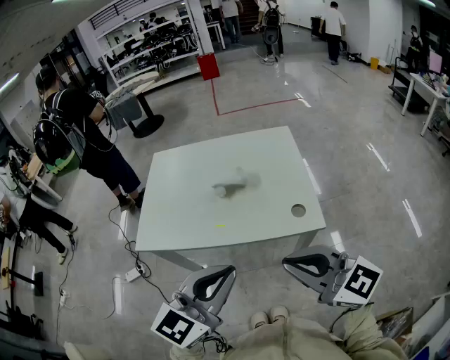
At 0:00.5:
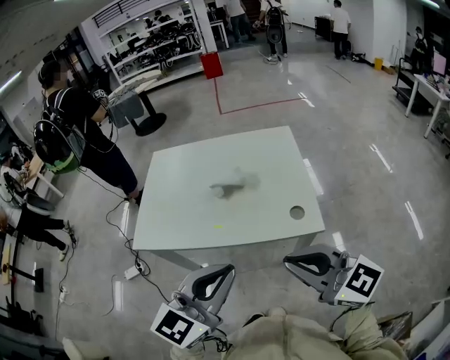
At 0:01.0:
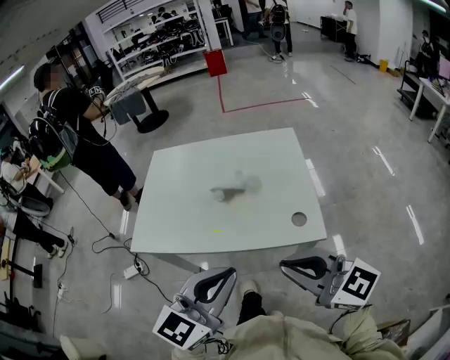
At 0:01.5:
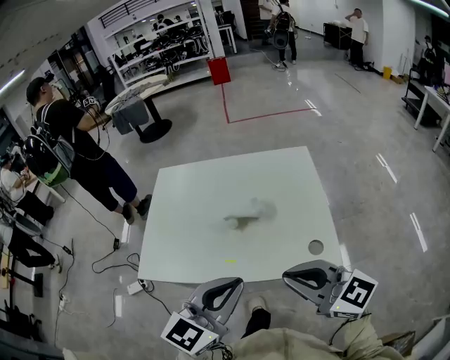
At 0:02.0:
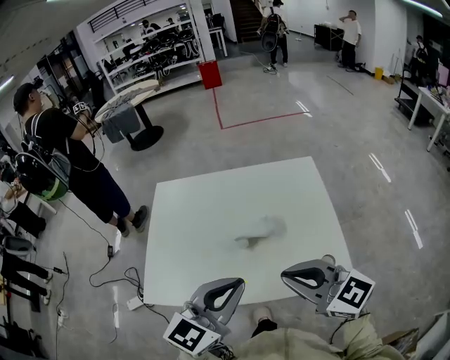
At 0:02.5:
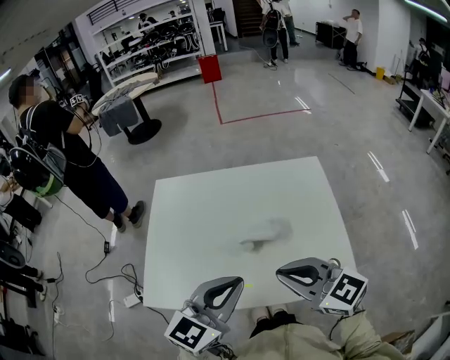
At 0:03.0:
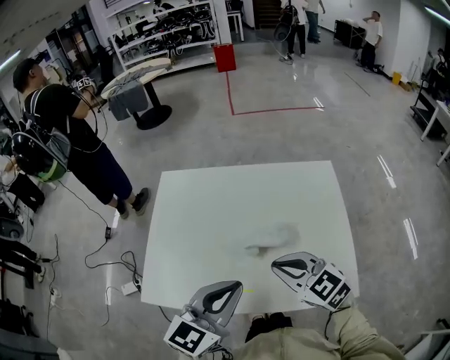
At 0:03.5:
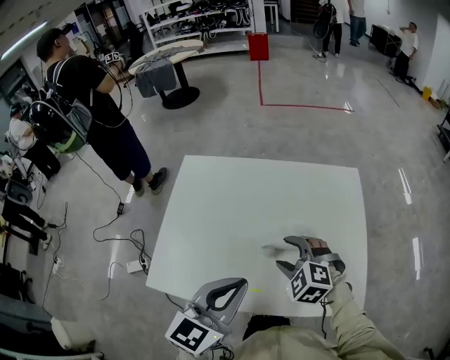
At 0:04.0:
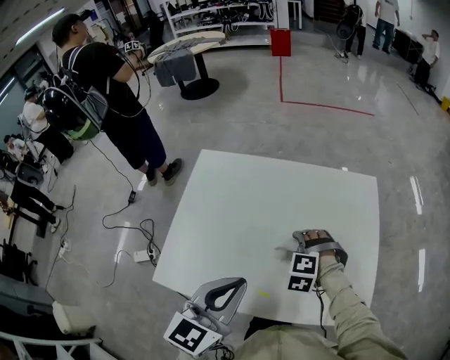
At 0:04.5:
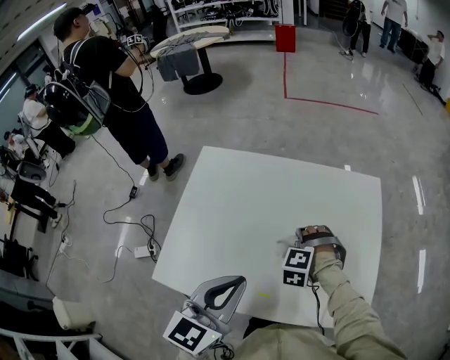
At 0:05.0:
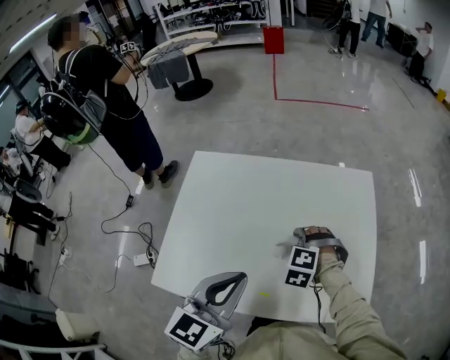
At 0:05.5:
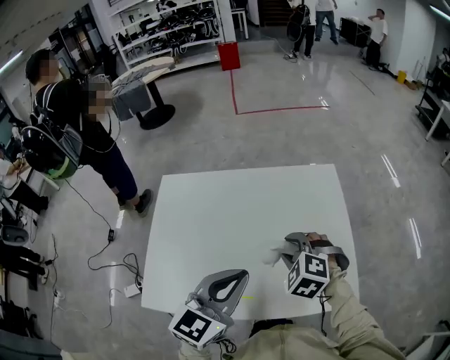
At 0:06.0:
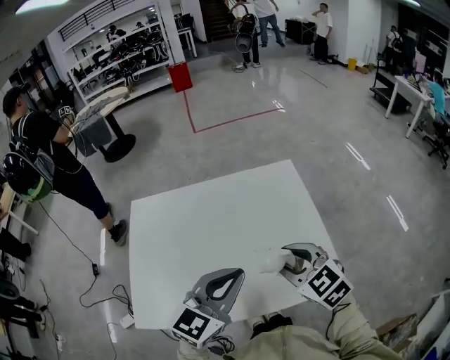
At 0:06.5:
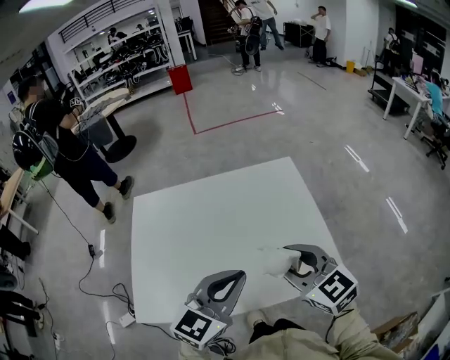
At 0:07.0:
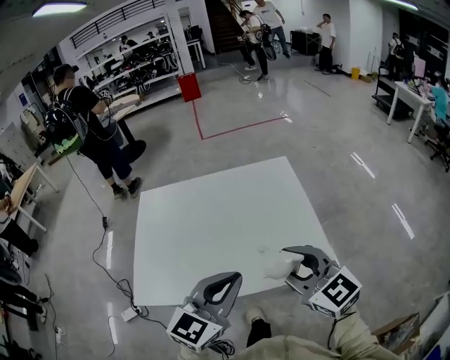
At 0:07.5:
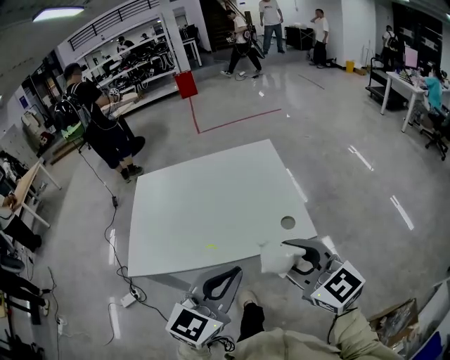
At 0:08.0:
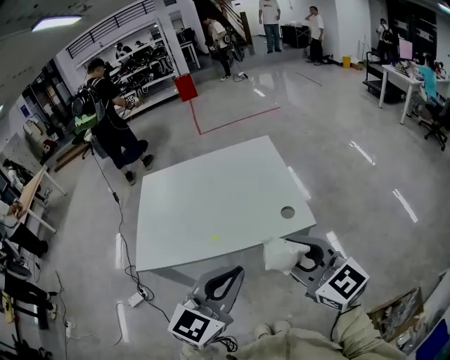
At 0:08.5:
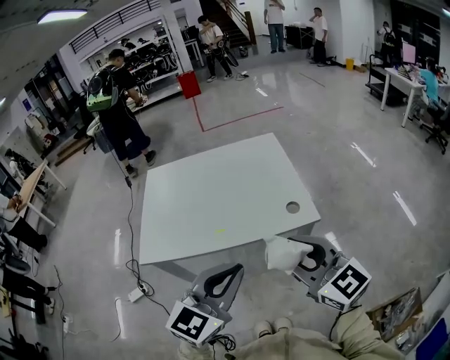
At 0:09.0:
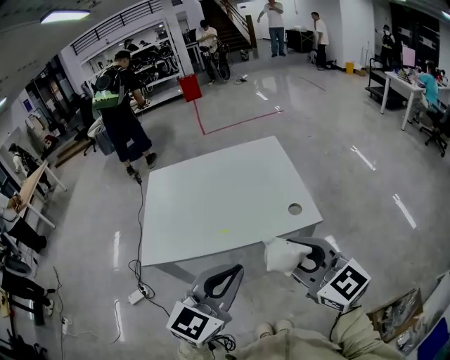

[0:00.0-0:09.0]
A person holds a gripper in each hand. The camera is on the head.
0:00.0 to 0:02.0: Both grippers travel together forward, some 25 cm.
0:02.0 to 0:04.5: The left gripper heads to the left and forward, covering approximately 10 cm, and turns by roughly 20 degrees; the right gripper is displaced downward and forward by roughly 35 cm, points its fingers some 60 degrees further downward, and opens up.
0:04.5 to 0:07.0: The left gripper heads to the right and backward, covering about 15 cm, and turns by about 30 degrees, while the right gripper goes approximately 35 cm upward, backward and to the right, and tips its fingers upward by roughly 60 degrees.
0:07.0 to 0:09.0: Both grippers move backward, roughly 20 cm.

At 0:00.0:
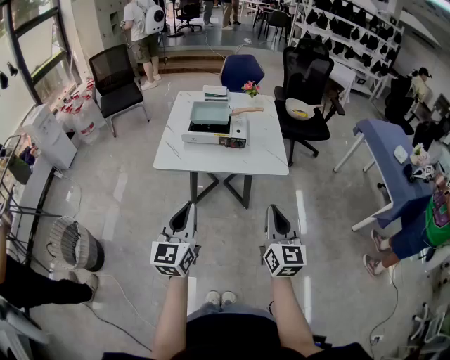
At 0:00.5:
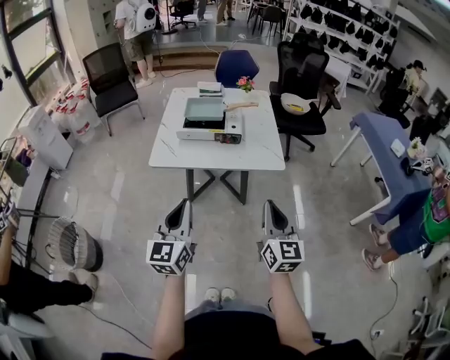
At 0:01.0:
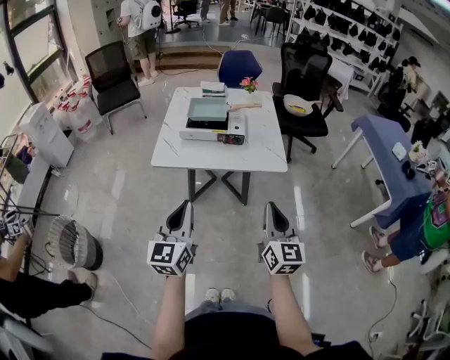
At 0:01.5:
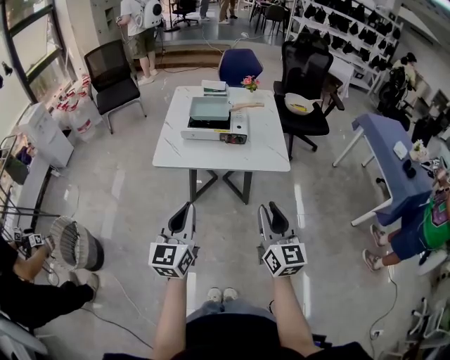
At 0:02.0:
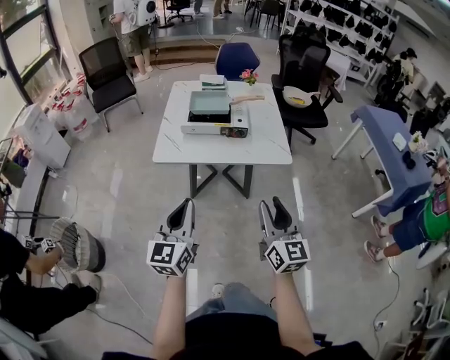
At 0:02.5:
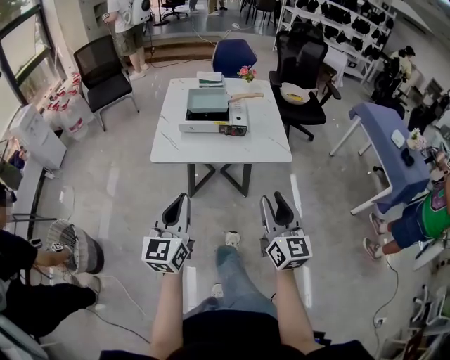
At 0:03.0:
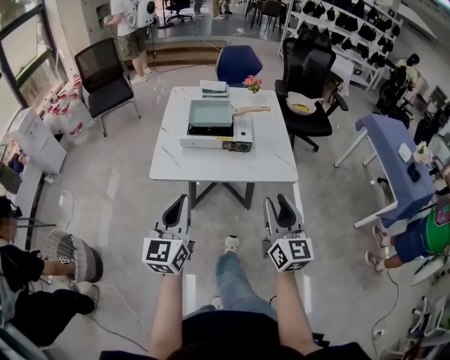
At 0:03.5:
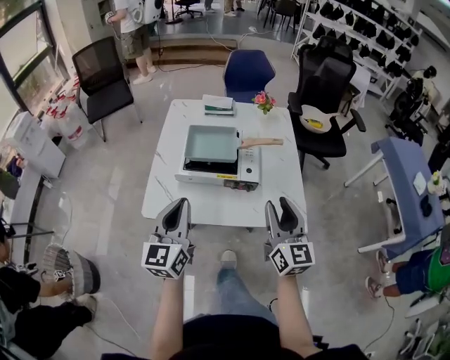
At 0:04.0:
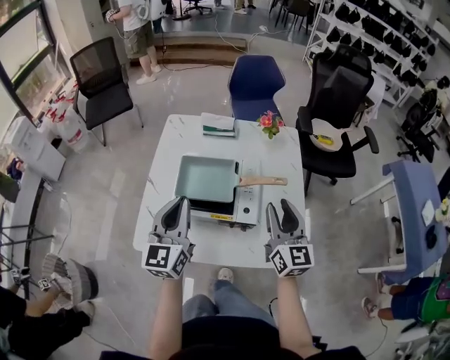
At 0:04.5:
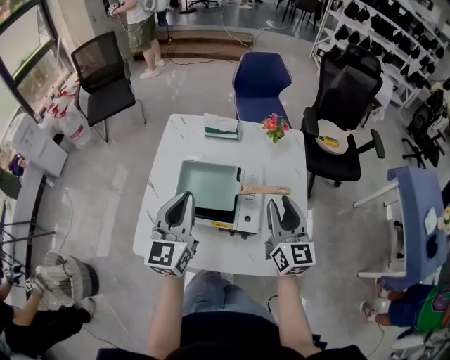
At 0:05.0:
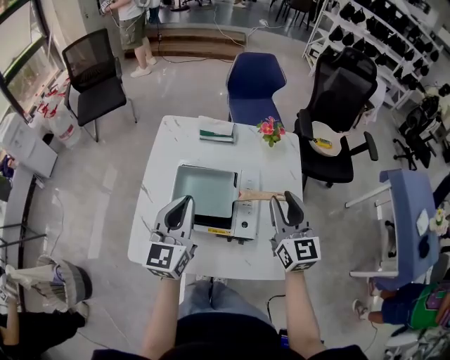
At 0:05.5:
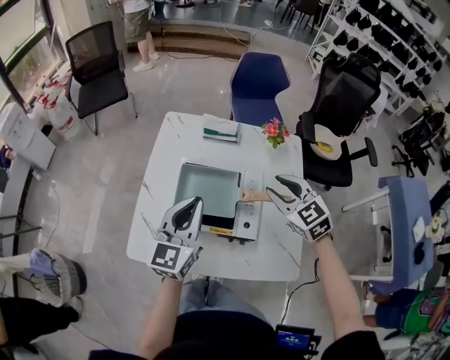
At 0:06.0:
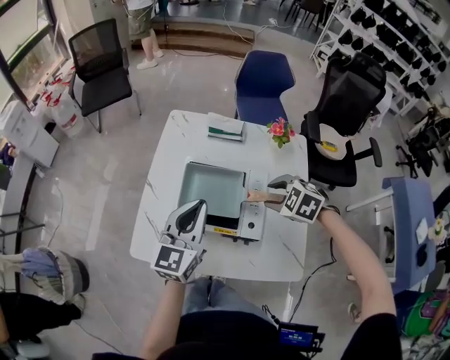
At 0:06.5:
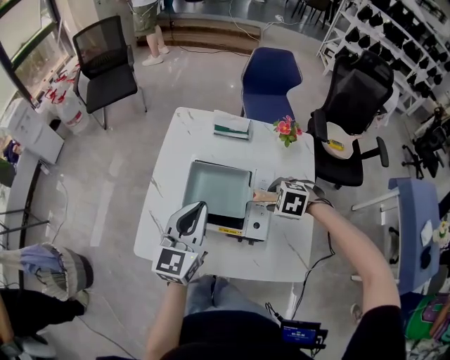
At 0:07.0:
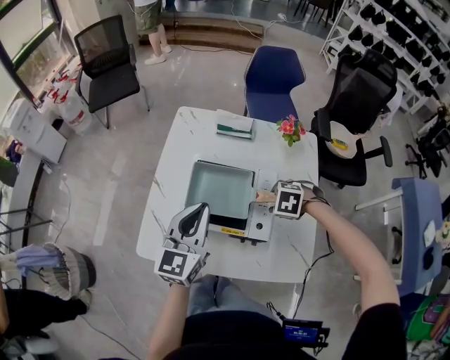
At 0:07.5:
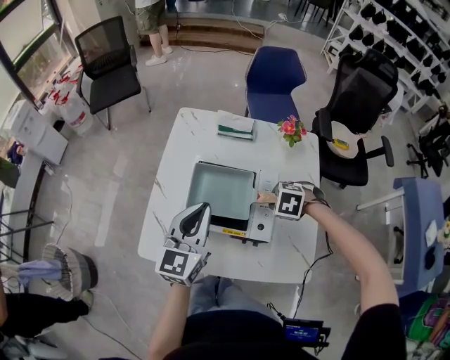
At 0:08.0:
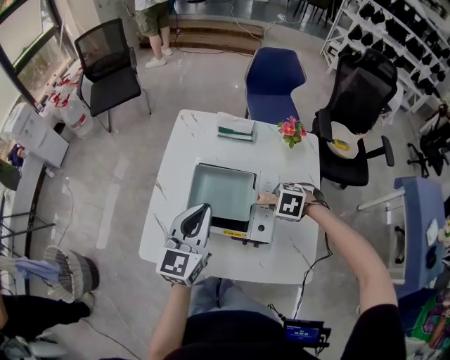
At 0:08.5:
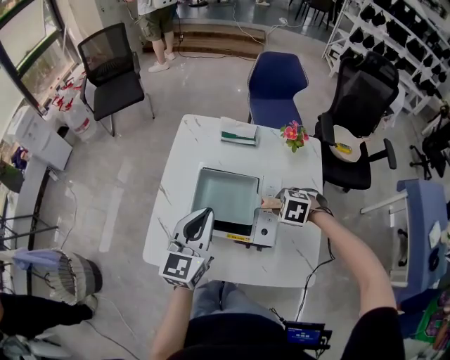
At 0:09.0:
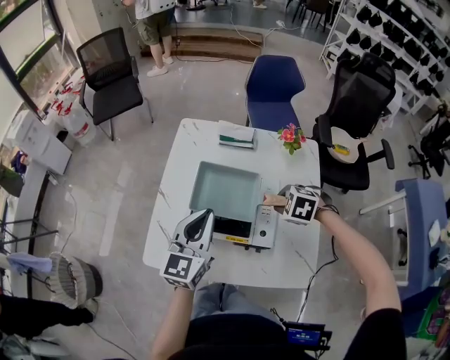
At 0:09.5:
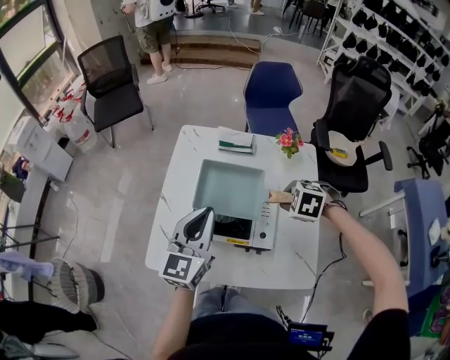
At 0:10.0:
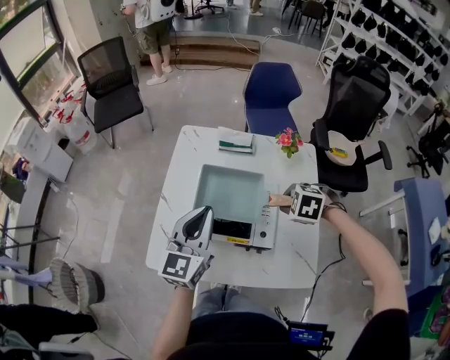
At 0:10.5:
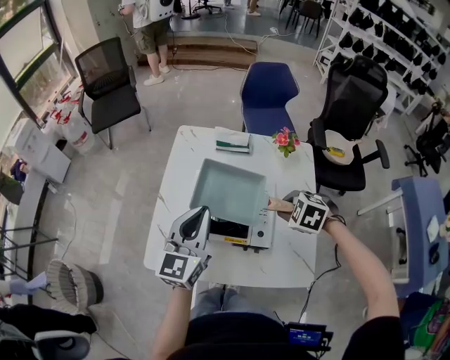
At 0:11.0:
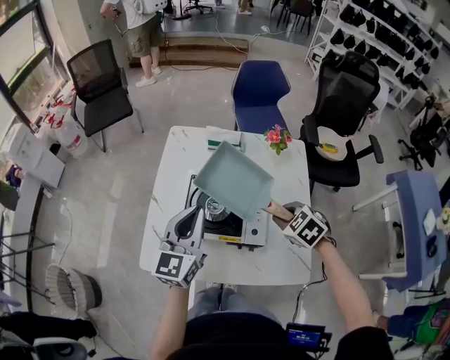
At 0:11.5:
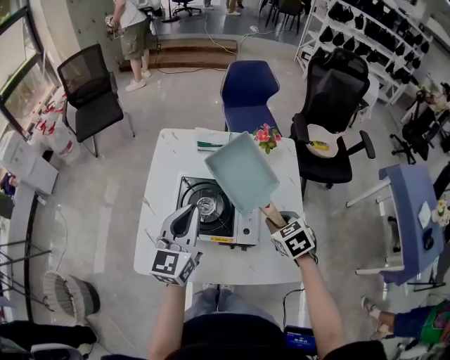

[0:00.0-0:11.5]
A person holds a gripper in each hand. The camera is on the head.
0:00.0 to 0:02.0: The right gripper opens.
0:02.0 to 0:04.0: Both grippers are carried forward, about 50 cm.
0:04.0 to 0:06.0: The left gripper travels forward by approximately 5 cm, while the right gripper shifts roughly 15 cm forward and downward, and tips its fingers downward by about 60 degrees.
0:06.0 to 0:07.5: The right gripper is displaced downward by about 10 cm, and closes its fingers.
0:07.5 to 0:09.5: The right gripper heads upward, covering about 10 cm.
0:09.5 to 0:11.5: The right gripper changes place by roughly 5 cm, and rolls clockwise, seen from behind, by some 40 degrees.

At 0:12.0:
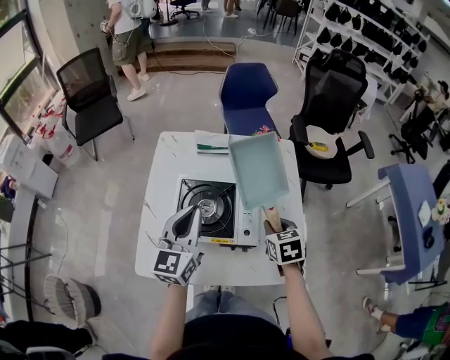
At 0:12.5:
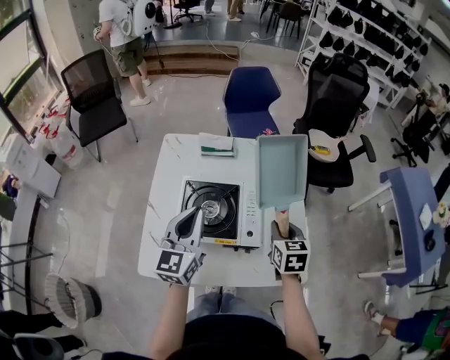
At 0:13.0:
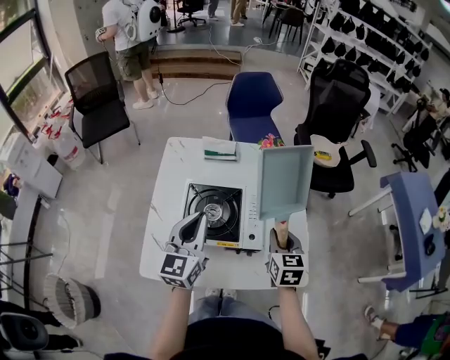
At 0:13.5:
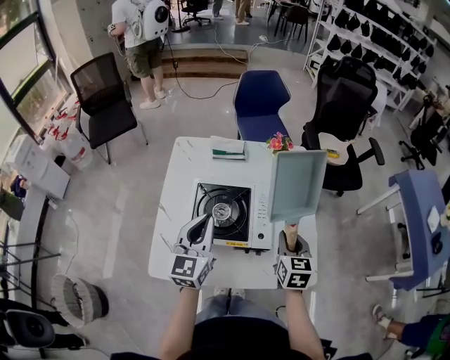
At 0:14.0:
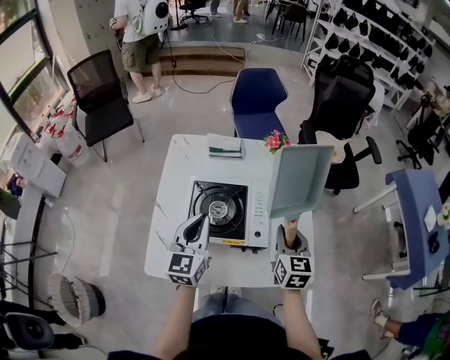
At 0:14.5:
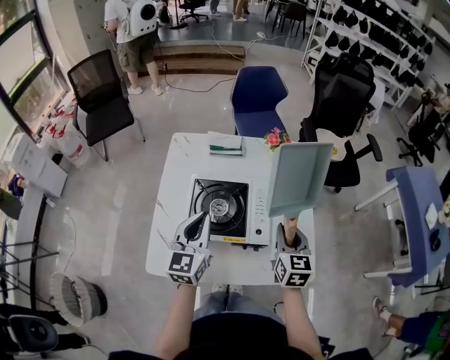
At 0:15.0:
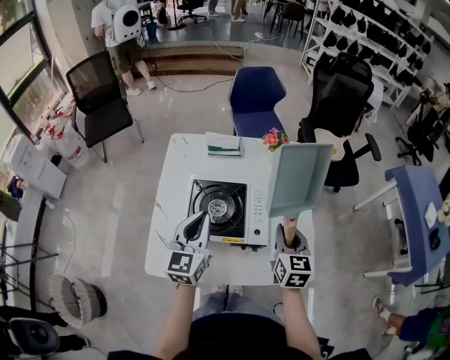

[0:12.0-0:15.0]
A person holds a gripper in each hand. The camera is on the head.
0:12.0 to 0:13.5: The right gripper rotates about 20 degrees.
0:13.5 to 0:15.0: The grippers make only small movements.

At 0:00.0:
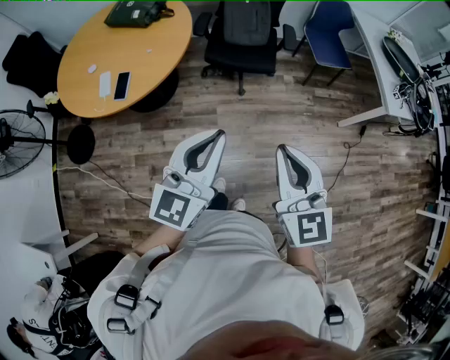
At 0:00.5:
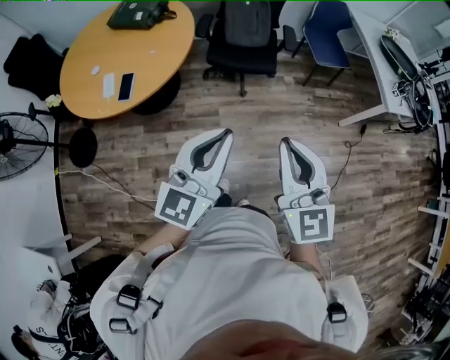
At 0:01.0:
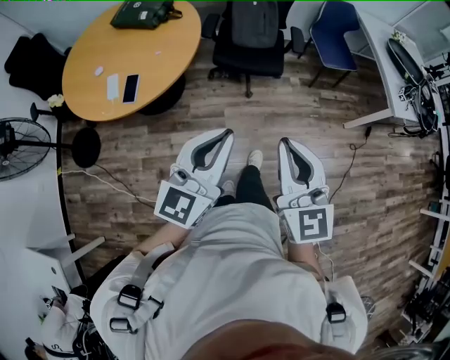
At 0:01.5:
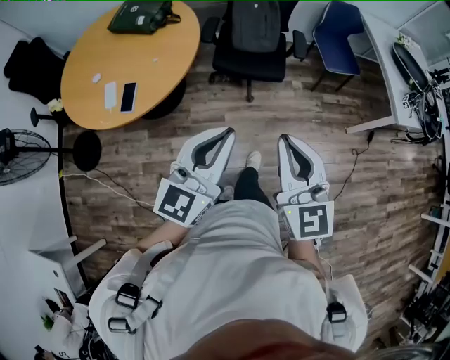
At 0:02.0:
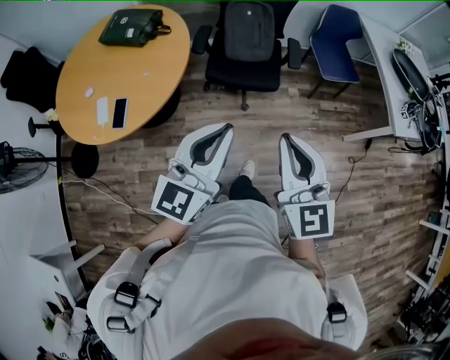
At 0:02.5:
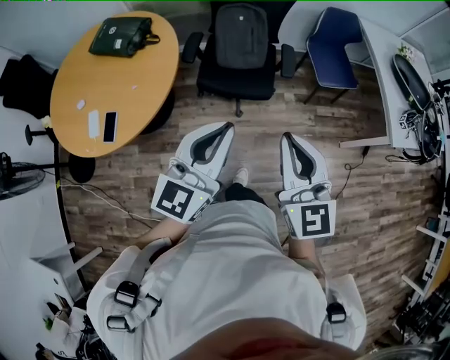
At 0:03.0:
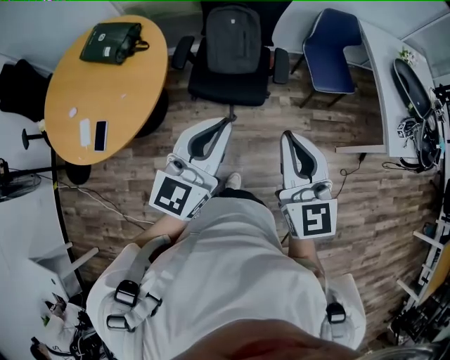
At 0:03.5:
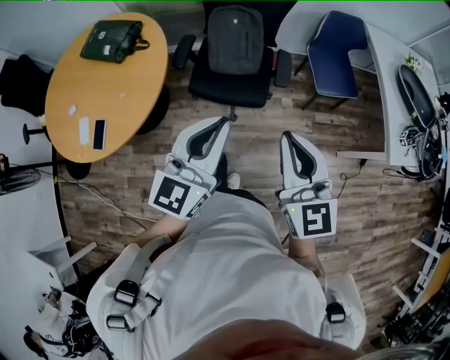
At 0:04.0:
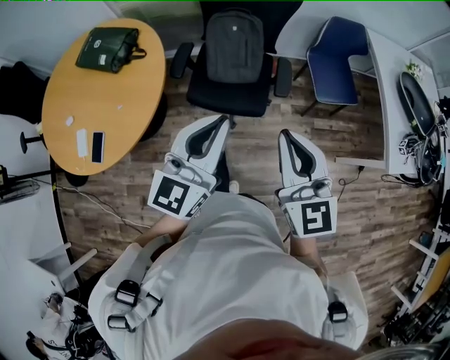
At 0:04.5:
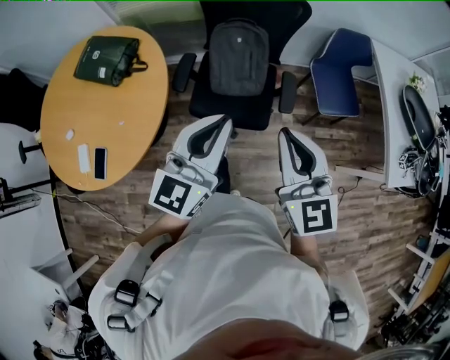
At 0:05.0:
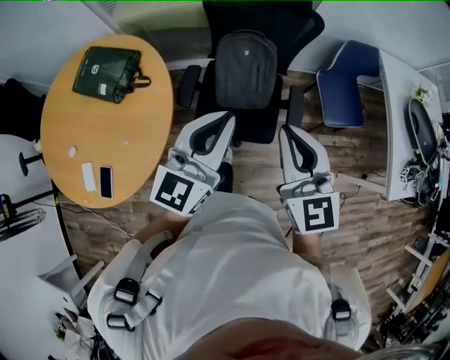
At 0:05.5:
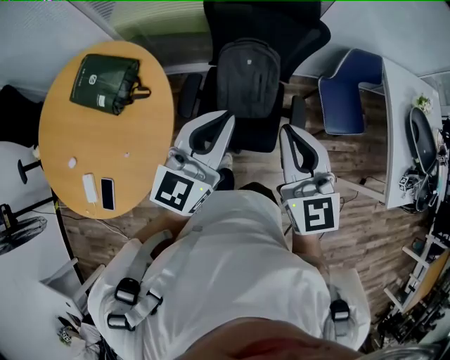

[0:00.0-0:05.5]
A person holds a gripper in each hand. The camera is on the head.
0:00.0 to 0:02.0: The two grippers go roughly 20 cm forward.
0:02.0 to 0:03.5: Both grippers travel together forward and to the right, some 20 cm.
0:03.5 to 0:05.5: The right gripper shifts roughly 35 cm forward and to the left. Meanwhile the left gripper heads forward, covering approximately 35 cm.
